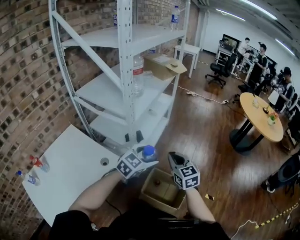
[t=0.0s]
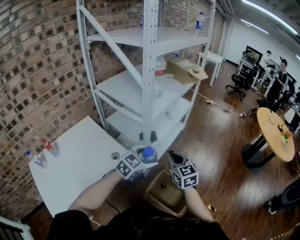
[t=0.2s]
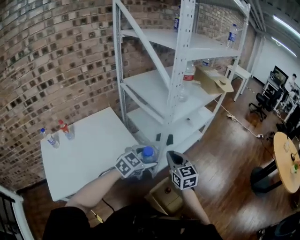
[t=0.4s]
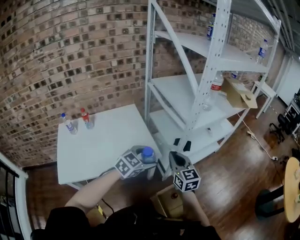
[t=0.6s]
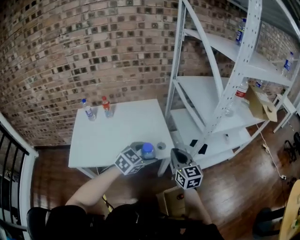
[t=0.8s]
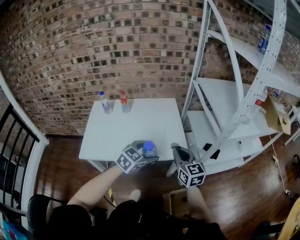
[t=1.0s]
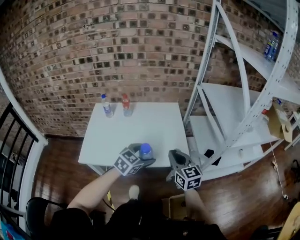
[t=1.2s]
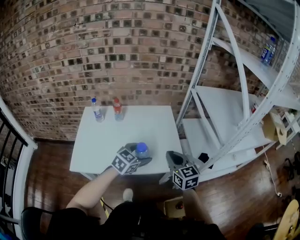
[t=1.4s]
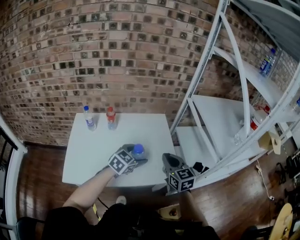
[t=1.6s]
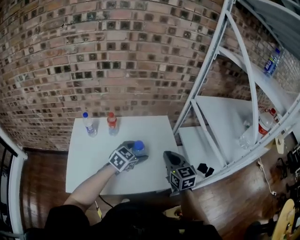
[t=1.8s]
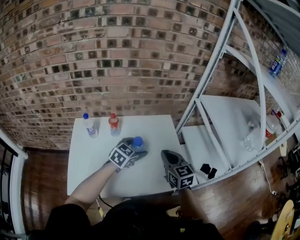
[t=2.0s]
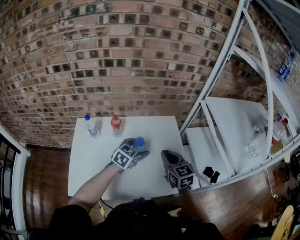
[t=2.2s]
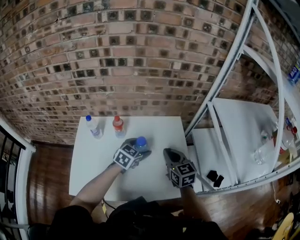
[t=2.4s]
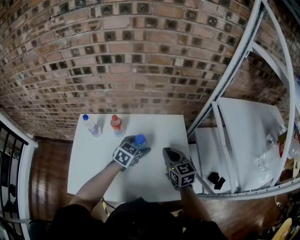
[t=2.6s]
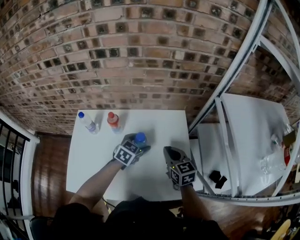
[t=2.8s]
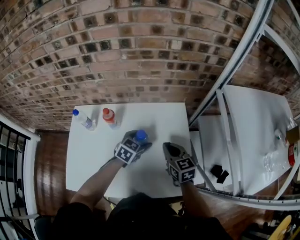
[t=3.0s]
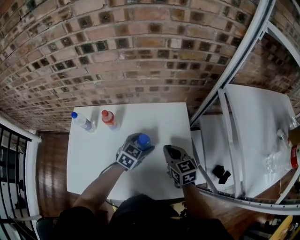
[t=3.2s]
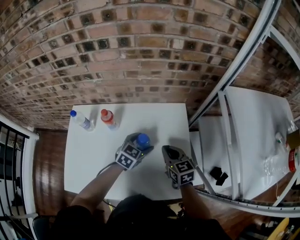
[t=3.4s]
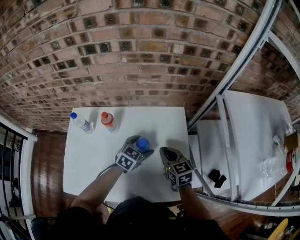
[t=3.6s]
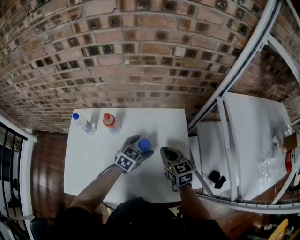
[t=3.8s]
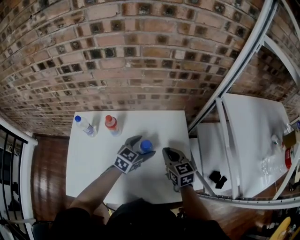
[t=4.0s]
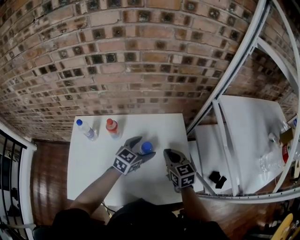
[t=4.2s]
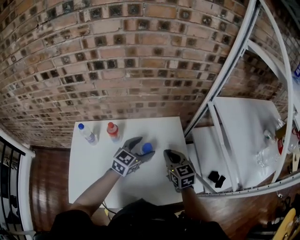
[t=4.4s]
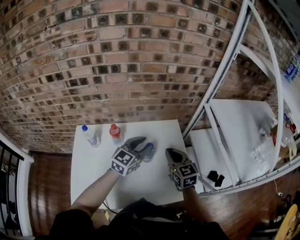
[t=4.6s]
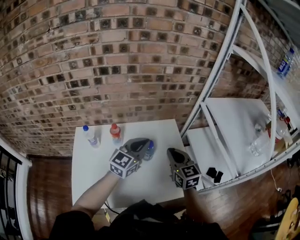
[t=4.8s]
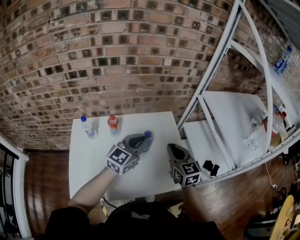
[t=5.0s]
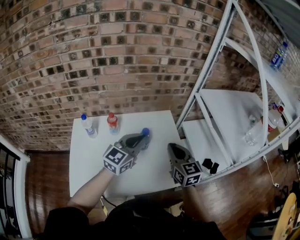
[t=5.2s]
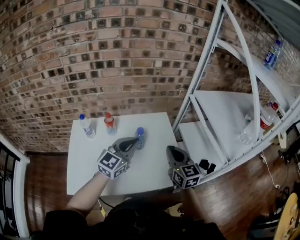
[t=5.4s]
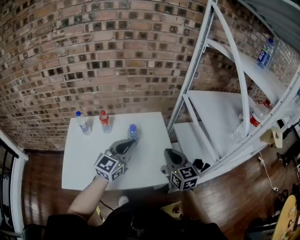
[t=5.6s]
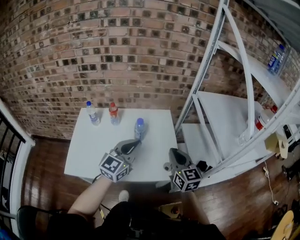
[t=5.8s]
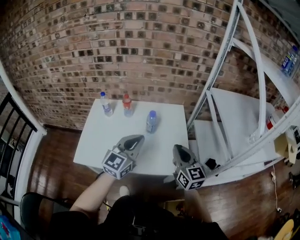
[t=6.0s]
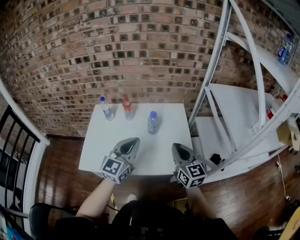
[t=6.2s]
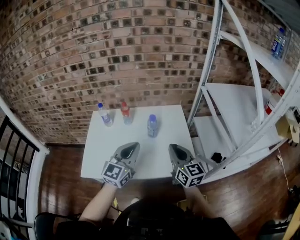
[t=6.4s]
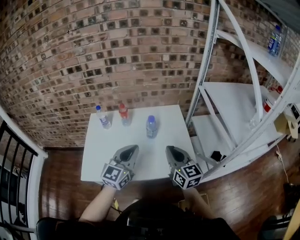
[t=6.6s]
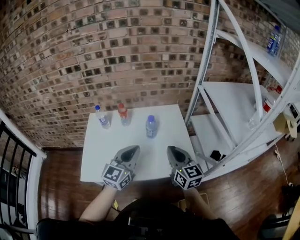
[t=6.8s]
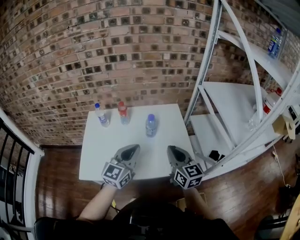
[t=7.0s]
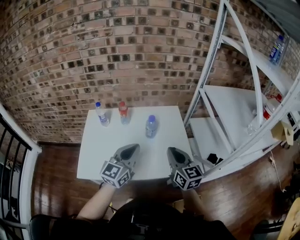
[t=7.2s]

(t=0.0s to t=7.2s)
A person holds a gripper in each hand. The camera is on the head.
t=0.0s - t=1.4s: The pair of grippers is taken approximately 40 cm. The left gripper turns by about 60 degrees; the right gripper rotates approximately 60 degrees.
t=1.4s - t=2.8s: The grippers both shift forward by roughly 30 cm.
t=2.8s - t=4.4s: The left gripper is displaced upward by approximately 10 cm, and changes its angle by approximately 20 degrees.
t=4.4s - t=5.8s: The right gripper heads backward, to the right and upward, covering approximately 25 cm; the left gripper moves backward and upward, some 25 cm, swivels approximately 20 degrees, and closes.
t=5.8s - t=7.2s: The grippers both shift to the left by roughly 10 cm.

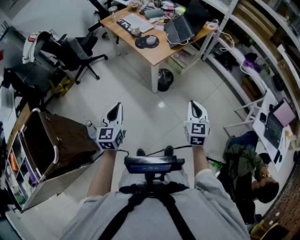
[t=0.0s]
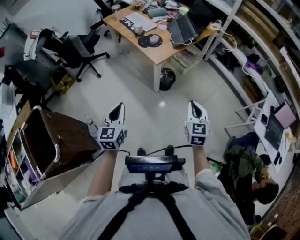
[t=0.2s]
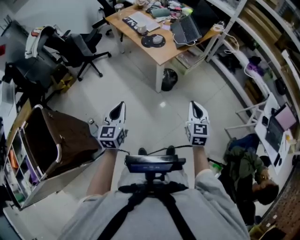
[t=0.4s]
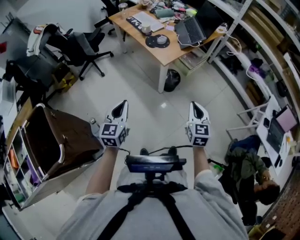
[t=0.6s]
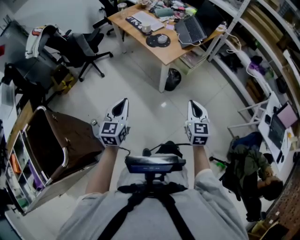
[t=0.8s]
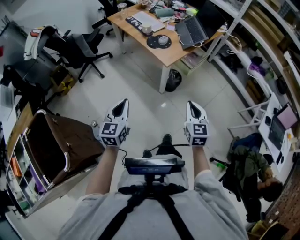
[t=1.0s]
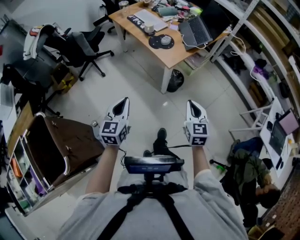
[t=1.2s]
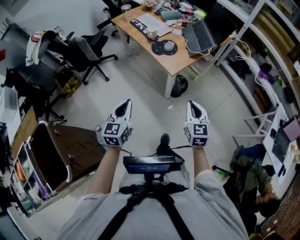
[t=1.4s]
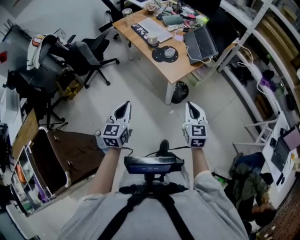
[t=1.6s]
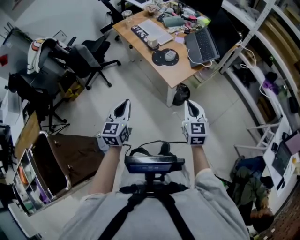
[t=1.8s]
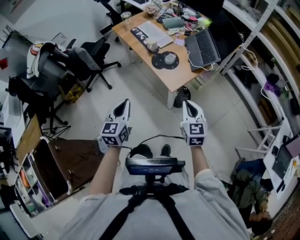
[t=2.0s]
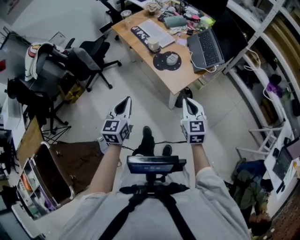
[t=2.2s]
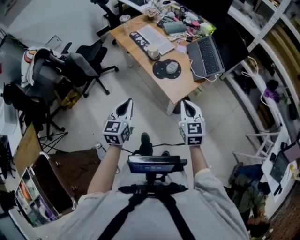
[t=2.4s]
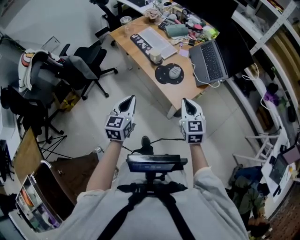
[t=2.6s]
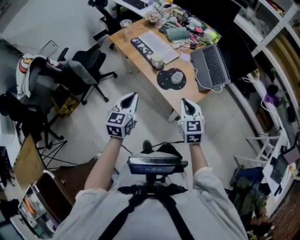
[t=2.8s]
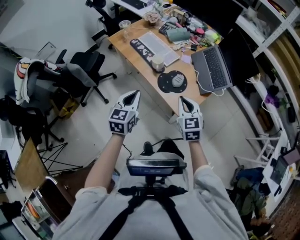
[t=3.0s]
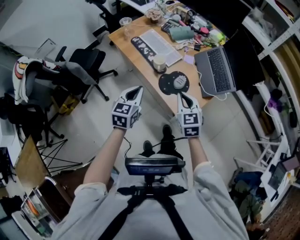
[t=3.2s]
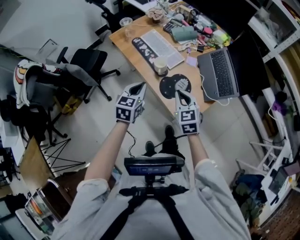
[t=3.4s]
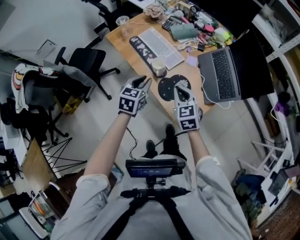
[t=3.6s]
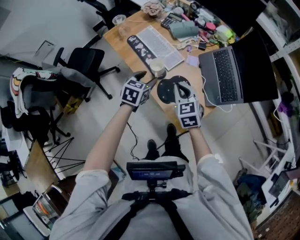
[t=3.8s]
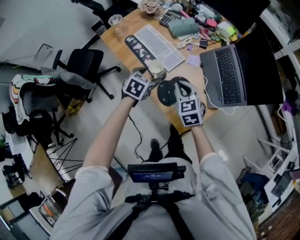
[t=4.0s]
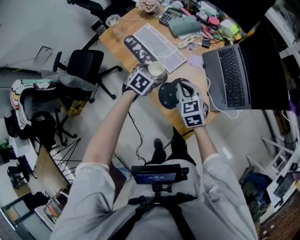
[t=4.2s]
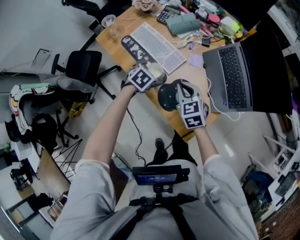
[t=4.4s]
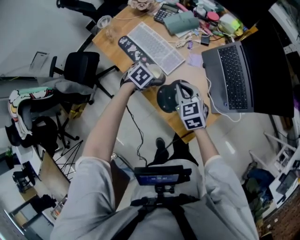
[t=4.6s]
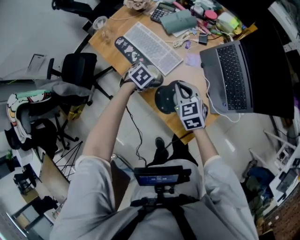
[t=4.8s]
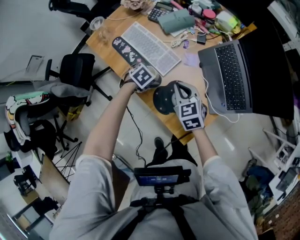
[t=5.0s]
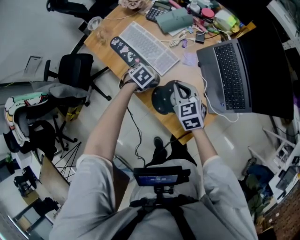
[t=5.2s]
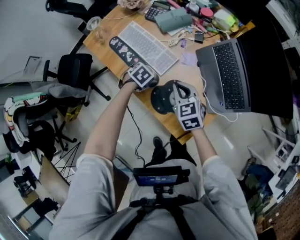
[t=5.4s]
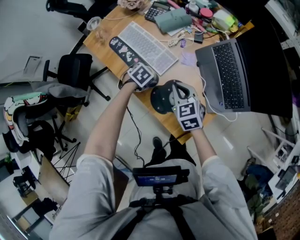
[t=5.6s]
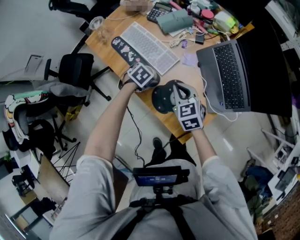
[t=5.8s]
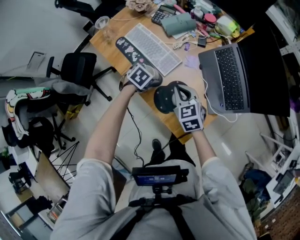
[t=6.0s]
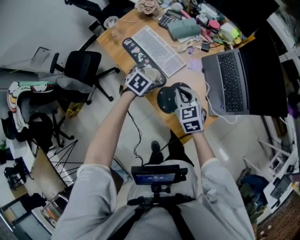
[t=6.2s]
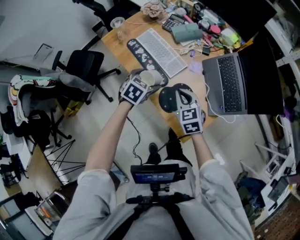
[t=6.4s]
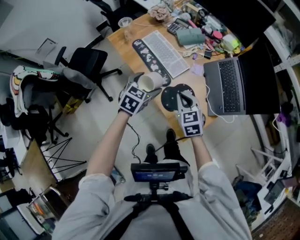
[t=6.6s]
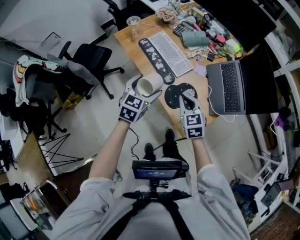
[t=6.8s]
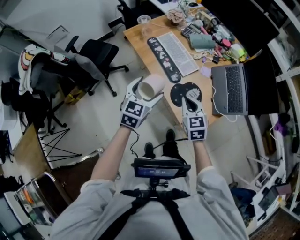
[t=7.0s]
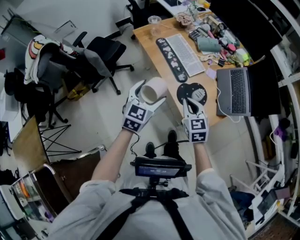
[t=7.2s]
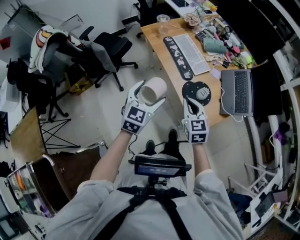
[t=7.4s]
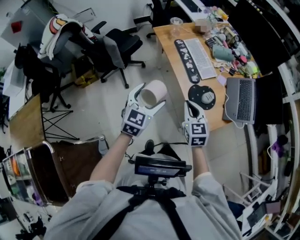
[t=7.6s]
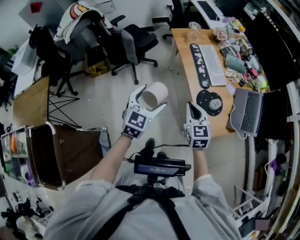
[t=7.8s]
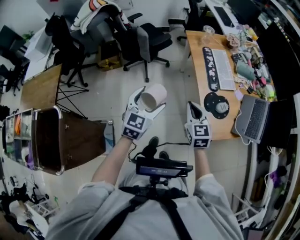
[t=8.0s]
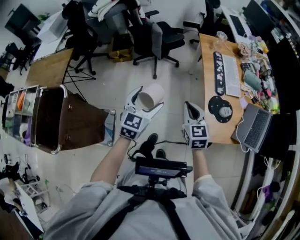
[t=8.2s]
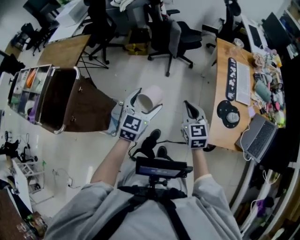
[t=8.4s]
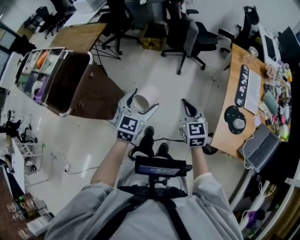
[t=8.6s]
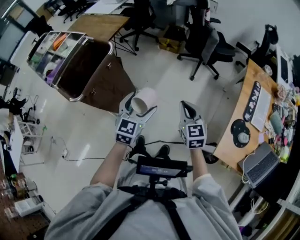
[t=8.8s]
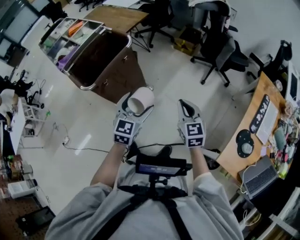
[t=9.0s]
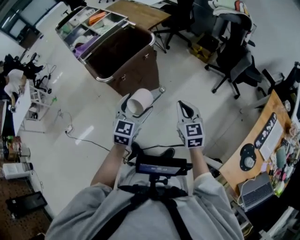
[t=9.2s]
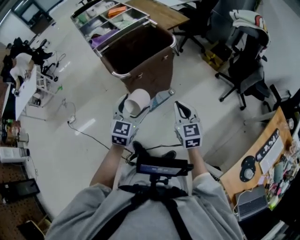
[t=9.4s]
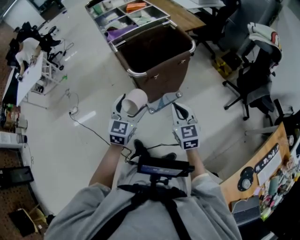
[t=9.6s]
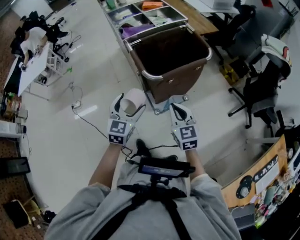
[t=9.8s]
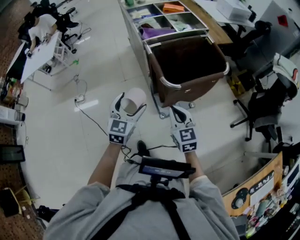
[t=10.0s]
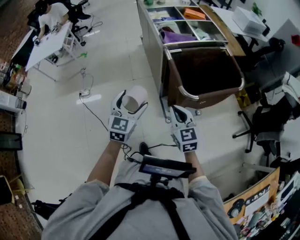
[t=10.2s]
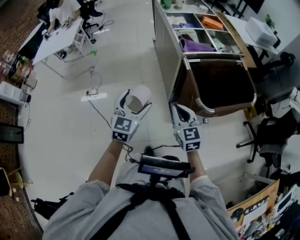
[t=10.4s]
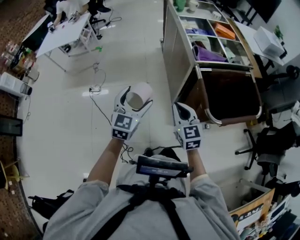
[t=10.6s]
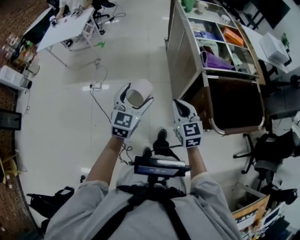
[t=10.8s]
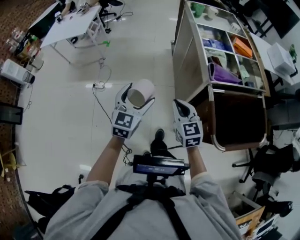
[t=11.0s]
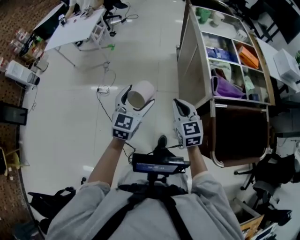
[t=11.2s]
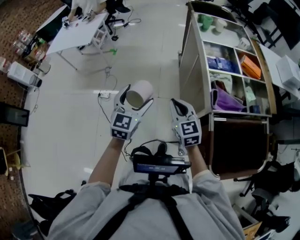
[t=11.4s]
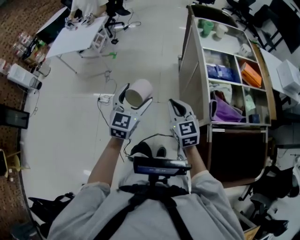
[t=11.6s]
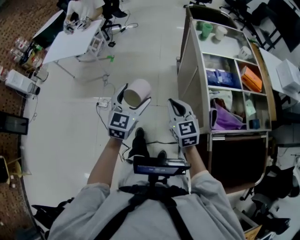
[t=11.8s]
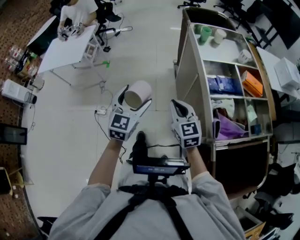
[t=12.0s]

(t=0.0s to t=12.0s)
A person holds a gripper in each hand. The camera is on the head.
t=0.0s - t=1.6s: Both grippers move forward and to the left, about 20 cm.
t=1.6s - t=3.0s: Both grippers move forward, about 30 cm.
t=3.0s - t=4.4s: The two grippers go about 35 cm forward and downward. The left gripper angles its fingers downward, by approximately 50 degrees, and opens.
t=6.0s - t=7.6s: The right gripper moves about 30 cm. The left gripper shifts by roughly 40 cm, and tips its fingers upward by roughly 50 degrees.
t=7.6s - t=9.0s: The right gripper shifts by approximately 35 cm, and rotates some 60 degrees, while the left gripper ends up approximately 40 cm from where it was, and swivels some 70 degrees.
t=9.0s - t=10.4s: The two grippers travel together, about 60 cm. The left gripper rotates some 40 degrees. Meanwhile the right gripper rotates some 50 degrees.
t=10.4s - t=12.0s: The pair of grippers is taken forward, roughly 40 cm.

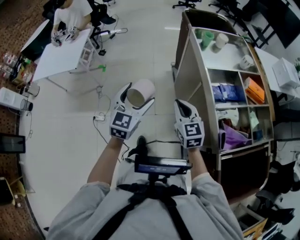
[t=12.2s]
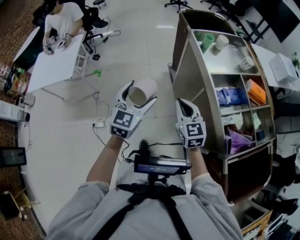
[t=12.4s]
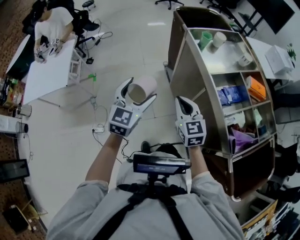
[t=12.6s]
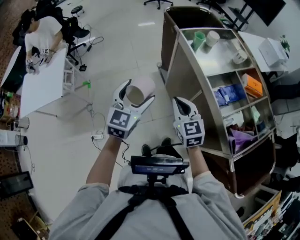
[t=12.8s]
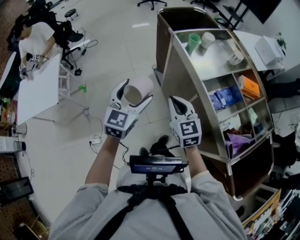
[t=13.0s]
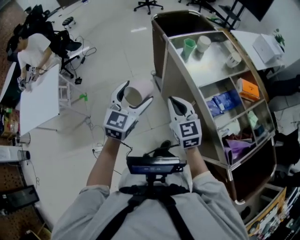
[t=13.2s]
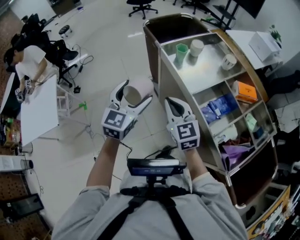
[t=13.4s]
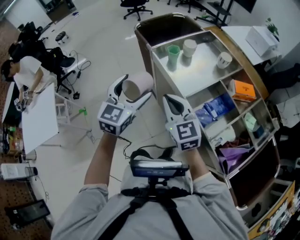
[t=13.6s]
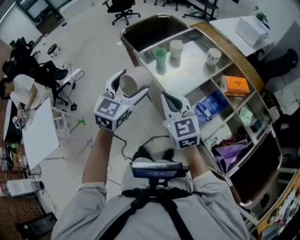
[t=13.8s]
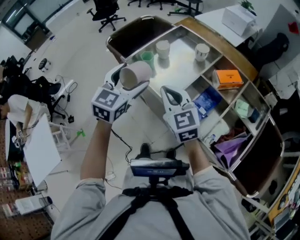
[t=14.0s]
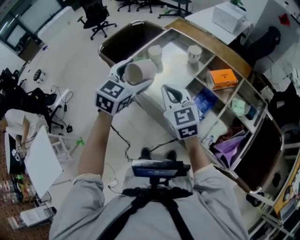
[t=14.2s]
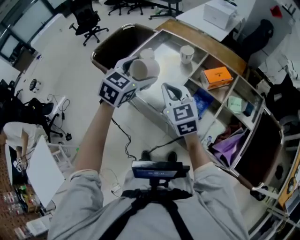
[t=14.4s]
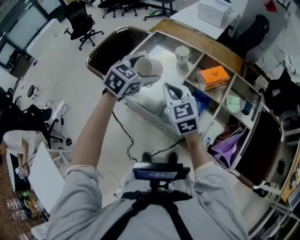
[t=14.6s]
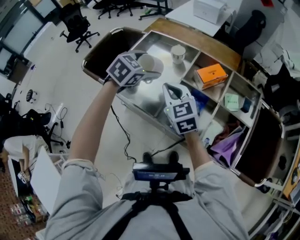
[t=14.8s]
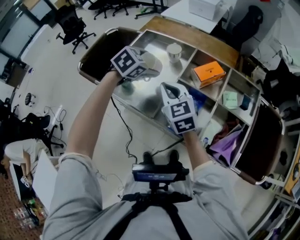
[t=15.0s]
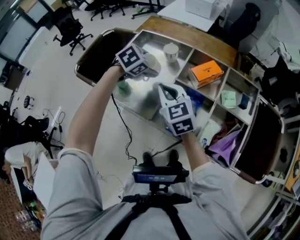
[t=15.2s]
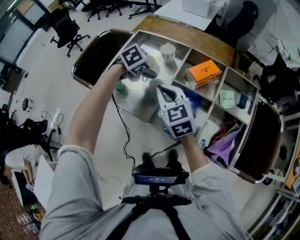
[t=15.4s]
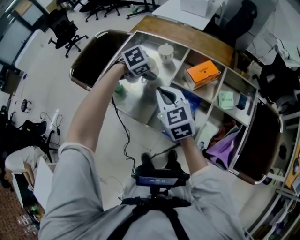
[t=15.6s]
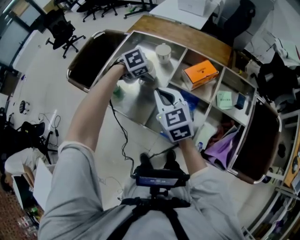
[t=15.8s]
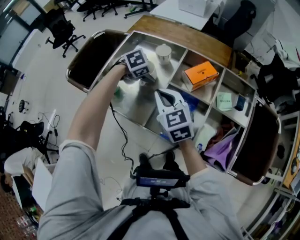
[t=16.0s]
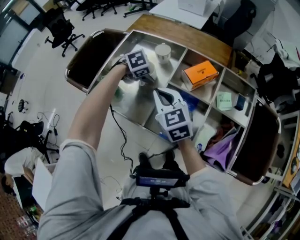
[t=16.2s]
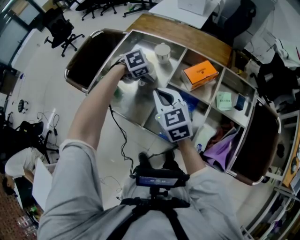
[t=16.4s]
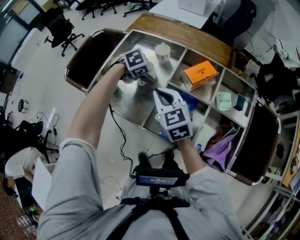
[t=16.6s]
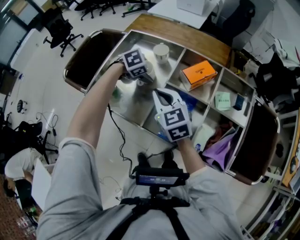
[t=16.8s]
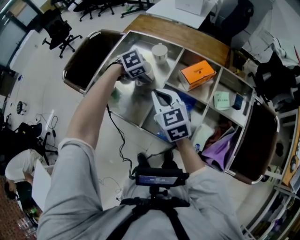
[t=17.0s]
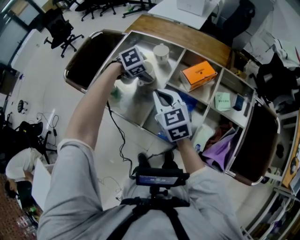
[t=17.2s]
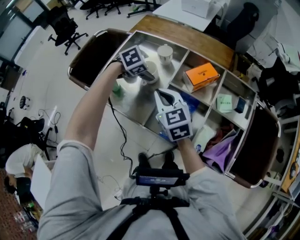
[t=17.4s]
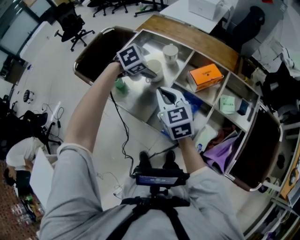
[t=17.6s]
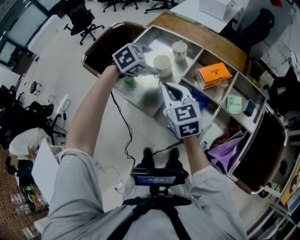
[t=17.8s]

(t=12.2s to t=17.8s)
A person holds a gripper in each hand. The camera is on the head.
t=12.2s - t=13.6s: The two grippers go about 25 cm forward. The left gripper changes its angle by roughly 30 degrees.
t=13.6s - t=15.0s: The left gripper moves some 35 cm, and tips its fingers downward by about 40 degrees. Meanwhile the right gripper moves approximately 20 cm, and rotates approximately 30 degrees.
t=15.0s - t=16.4s: The left gripper goes about 10 cm downward, and rotates roughly 20 degrees.
t=16.4s - t=17.8s: The left gripper goes about 10 cm upward, and turns by some 20 degrees.
